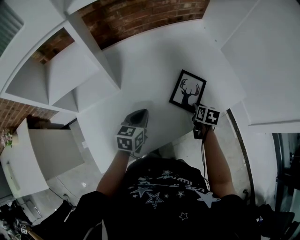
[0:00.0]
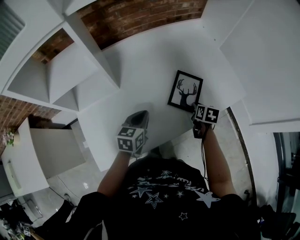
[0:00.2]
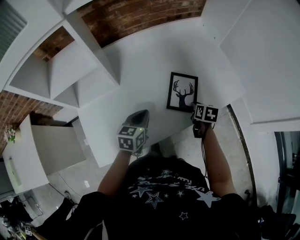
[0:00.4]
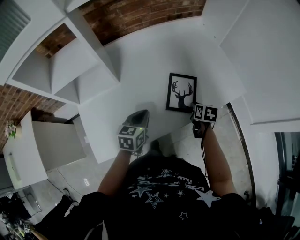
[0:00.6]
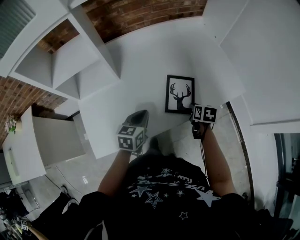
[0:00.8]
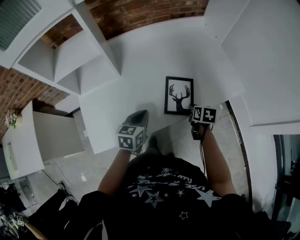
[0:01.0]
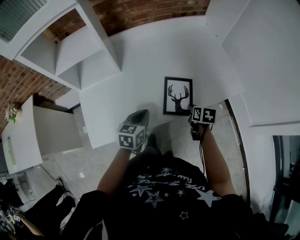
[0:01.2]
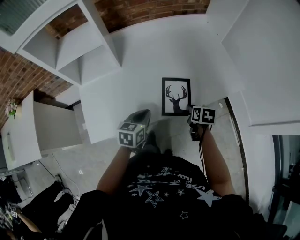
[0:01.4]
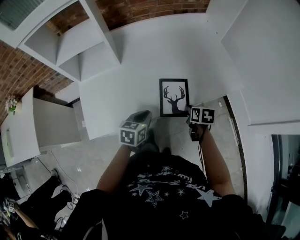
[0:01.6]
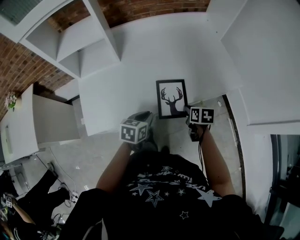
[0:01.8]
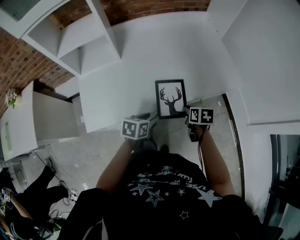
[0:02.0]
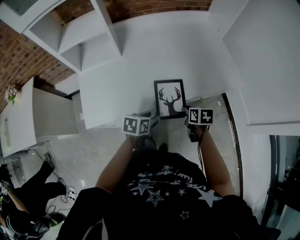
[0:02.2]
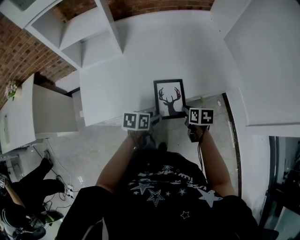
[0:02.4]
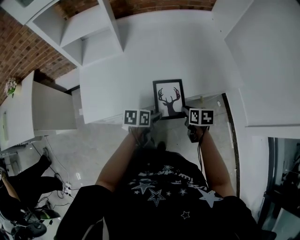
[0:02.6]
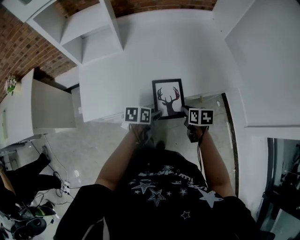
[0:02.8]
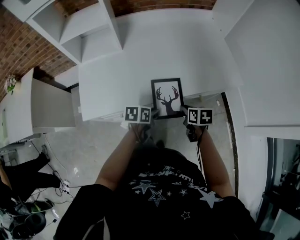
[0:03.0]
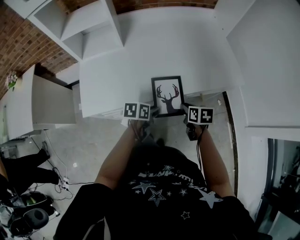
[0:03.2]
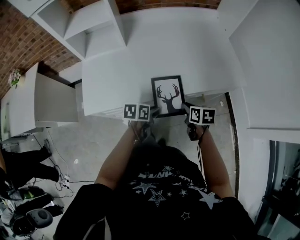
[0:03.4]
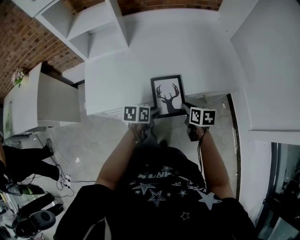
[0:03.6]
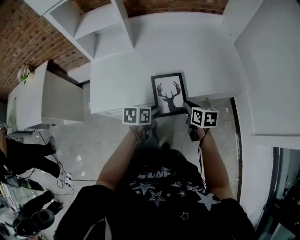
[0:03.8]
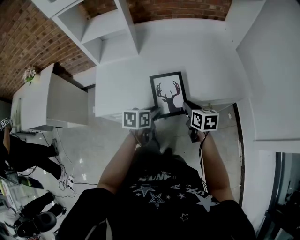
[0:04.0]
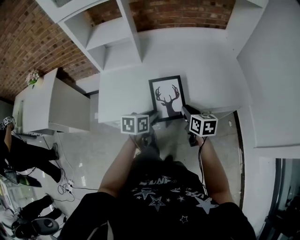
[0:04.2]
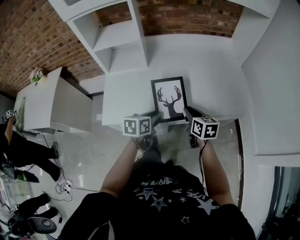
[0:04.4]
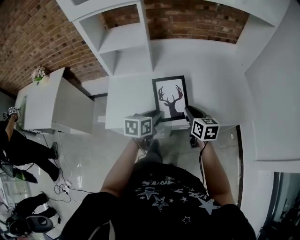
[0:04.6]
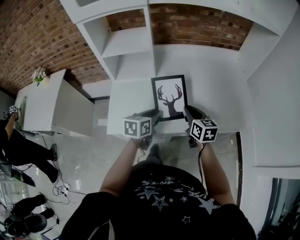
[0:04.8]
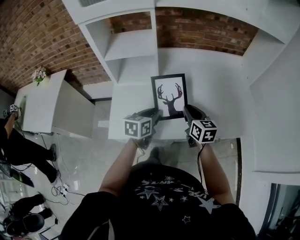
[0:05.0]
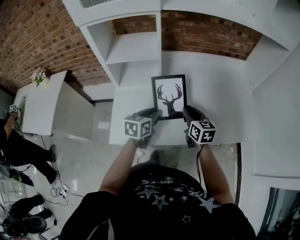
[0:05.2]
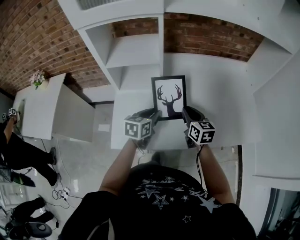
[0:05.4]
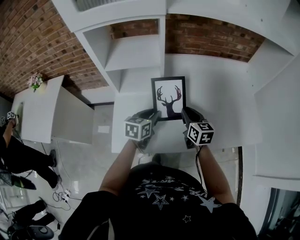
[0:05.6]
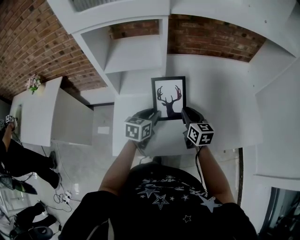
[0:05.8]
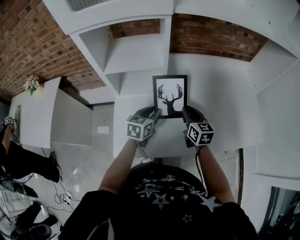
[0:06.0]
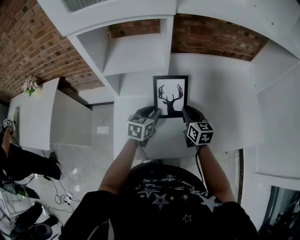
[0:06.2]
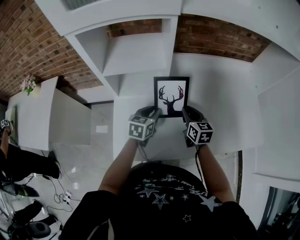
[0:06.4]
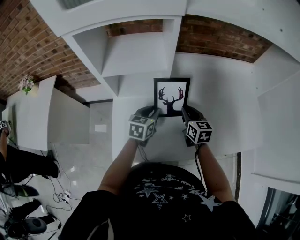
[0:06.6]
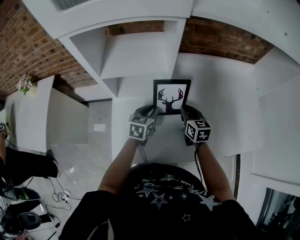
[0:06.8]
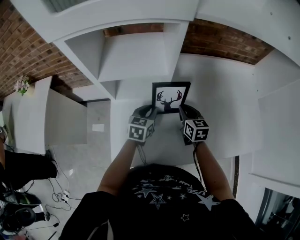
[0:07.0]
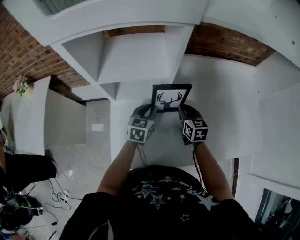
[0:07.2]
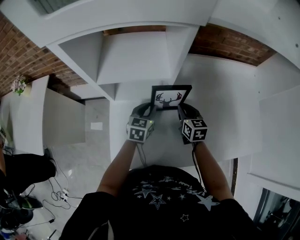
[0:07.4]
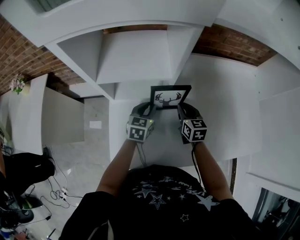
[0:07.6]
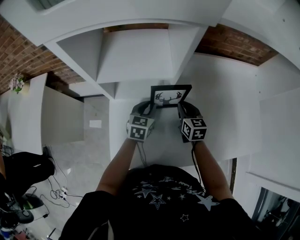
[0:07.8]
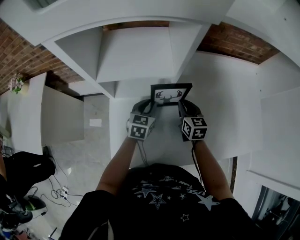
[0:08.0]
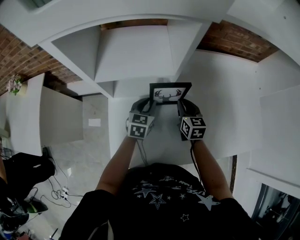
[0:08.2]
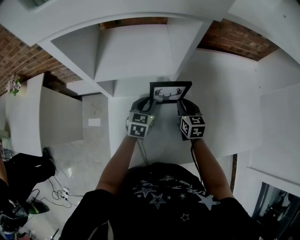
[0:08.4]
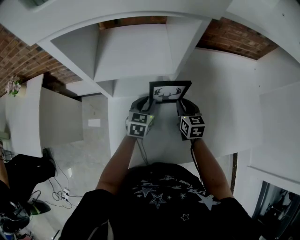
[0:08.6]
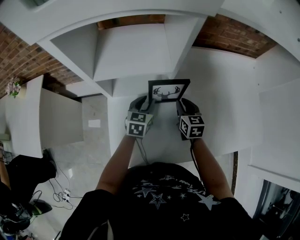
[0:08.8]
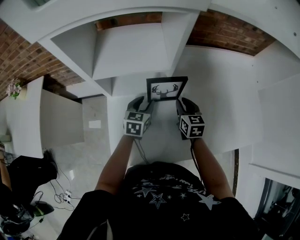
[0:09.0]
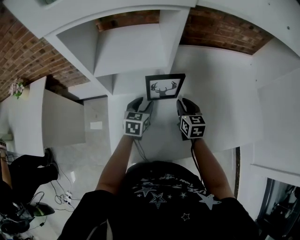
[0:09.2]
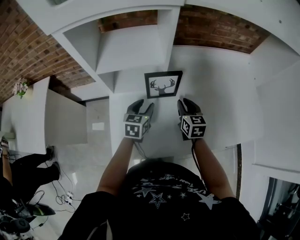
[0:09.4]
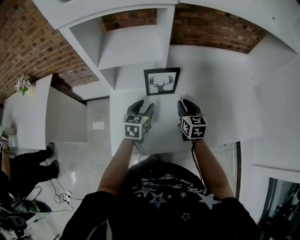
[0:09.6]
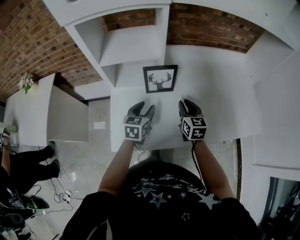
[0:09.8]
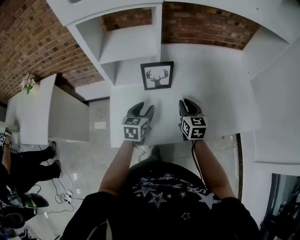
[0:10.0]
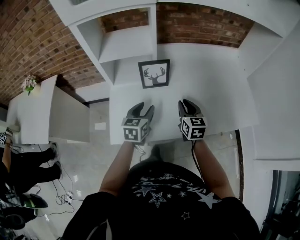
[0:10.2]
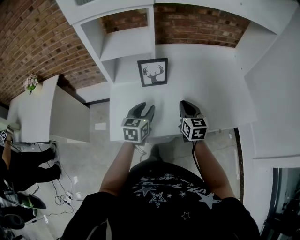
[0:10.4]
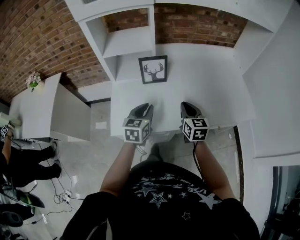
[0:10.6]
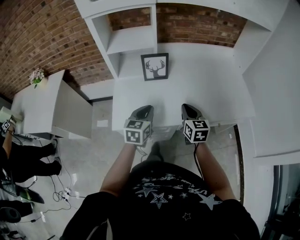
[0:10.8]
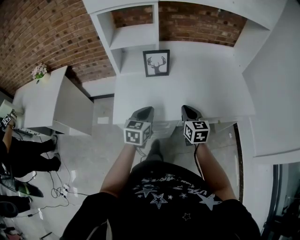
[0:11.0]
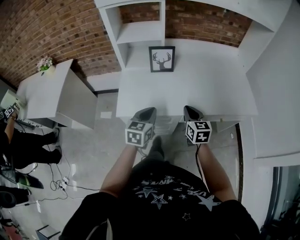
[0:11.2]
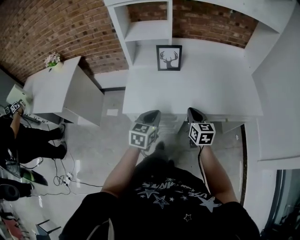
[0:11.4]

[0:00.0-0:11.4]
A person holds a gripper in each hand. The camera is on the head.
0:00.0 to 0:01.4: The left gripper travels backward and to the right by roughly 15 cm. Meanwhile the right gripper travels backward by about 10 cm.
0:01.4 to 0:02.8: The right gripper goes about 5 cm backward. The left gripper travels downward, to the right and backward by roughly 10 cm, changes its angle by some 30 degrees, and opens its fingers.
0:02.8 to 0:04.2: Both grippers travel together upward and to the left, approximately 10 cm. The right gripper rotates roughly 20 degrees.
0:04.2 to 0:05.6: The grippers both shift forward and to the left by roughly 20 cm.
0:05.6 to 0:07.2: Both grippers move forward and downward, roughly 10 cm.
0:07.2 to 0:08.6: The grippers move only a little.
0:08.6 to 0:10.0: The left gripper moves backward and upward, about 15 cm. Meanwhile the right gripper shifts some 15 cm backward, upward and to the right.
0:10.0 to 0:11.4: Both grippers move backward, roughly 20 cm. The left gripper closes up.

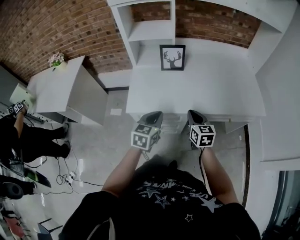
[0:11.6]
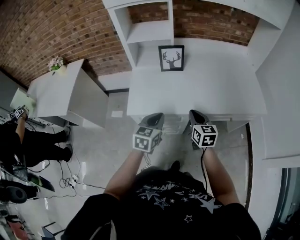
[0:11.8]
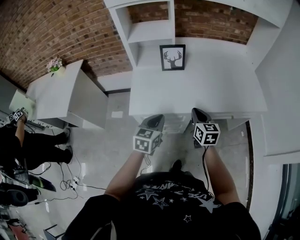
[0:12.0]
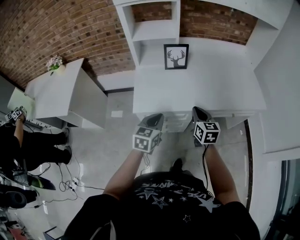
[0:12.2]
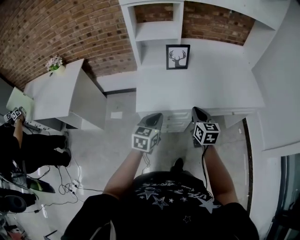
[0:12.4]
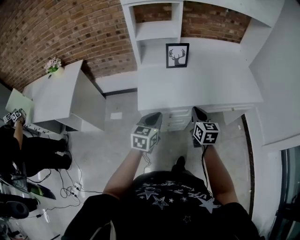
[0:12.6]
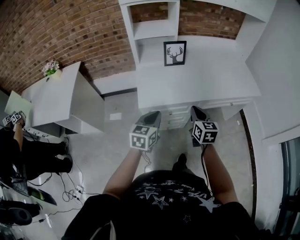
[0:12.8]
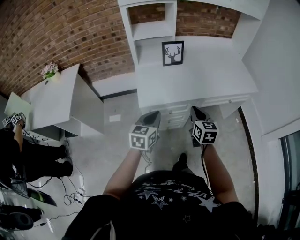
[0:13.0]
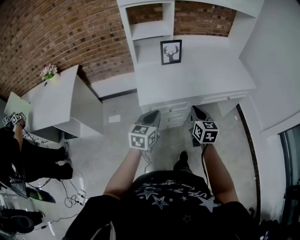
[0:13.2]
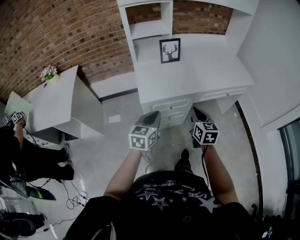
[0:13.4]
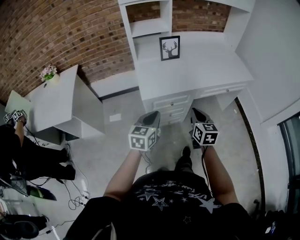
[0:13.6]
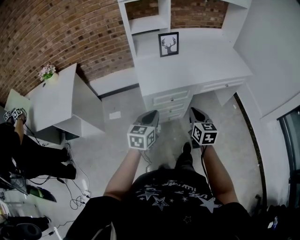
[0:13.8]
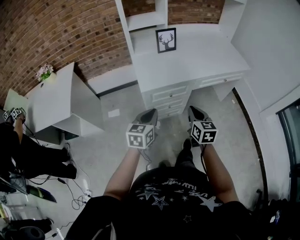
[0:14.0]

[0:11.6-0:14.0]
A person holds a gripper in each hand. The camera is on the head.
0:11.6 to 0:12.8: The right gripper travels backward and to the left by about 10 cm. The left gripper shifts some 10 cm to the left and backward.
0:12.8 to 0:14.0: The two grippers go roughly 15 cm backward.

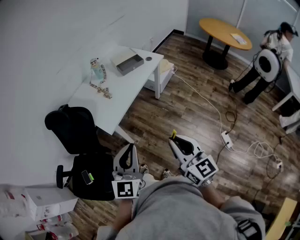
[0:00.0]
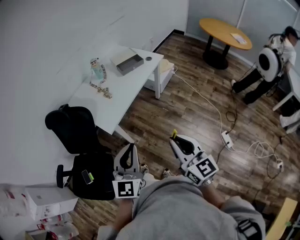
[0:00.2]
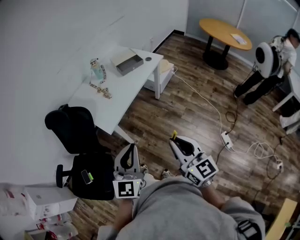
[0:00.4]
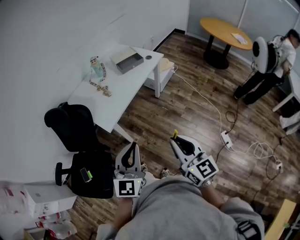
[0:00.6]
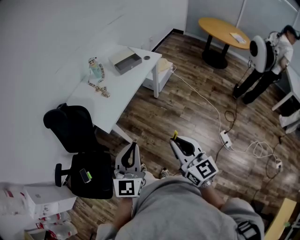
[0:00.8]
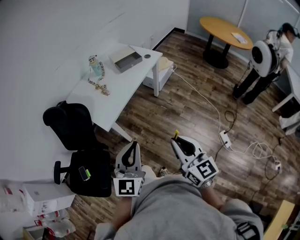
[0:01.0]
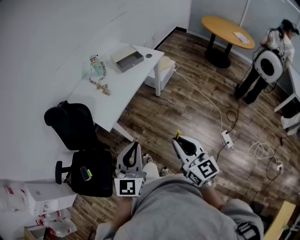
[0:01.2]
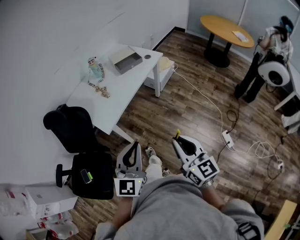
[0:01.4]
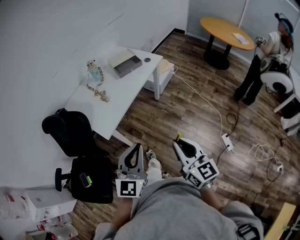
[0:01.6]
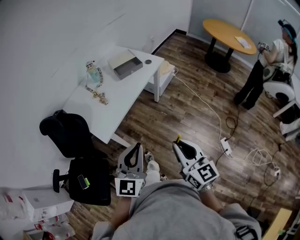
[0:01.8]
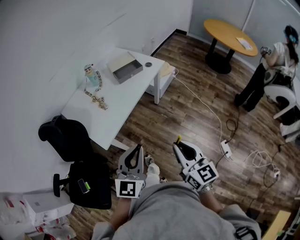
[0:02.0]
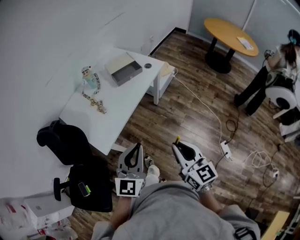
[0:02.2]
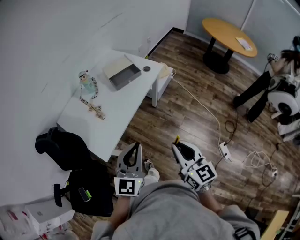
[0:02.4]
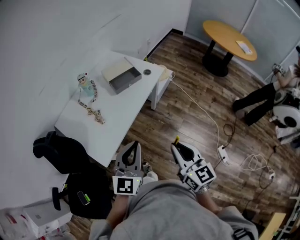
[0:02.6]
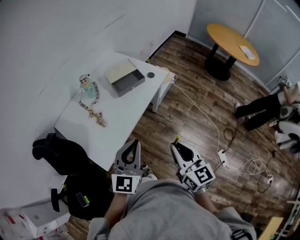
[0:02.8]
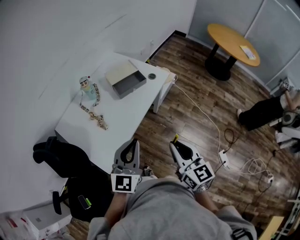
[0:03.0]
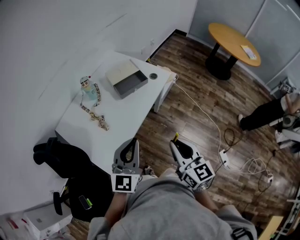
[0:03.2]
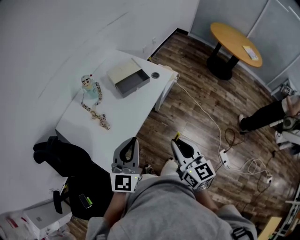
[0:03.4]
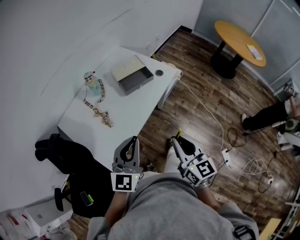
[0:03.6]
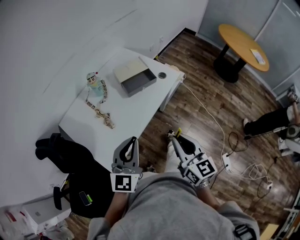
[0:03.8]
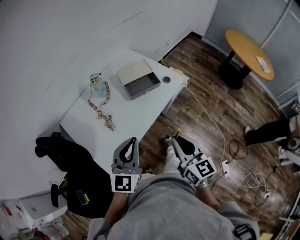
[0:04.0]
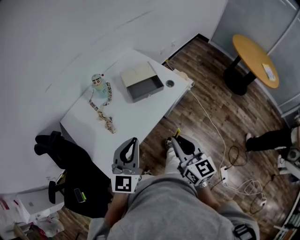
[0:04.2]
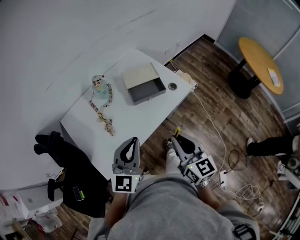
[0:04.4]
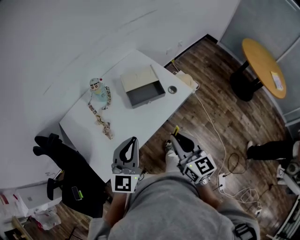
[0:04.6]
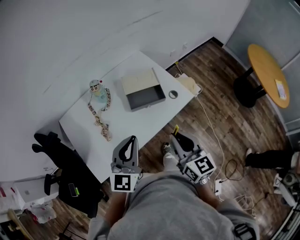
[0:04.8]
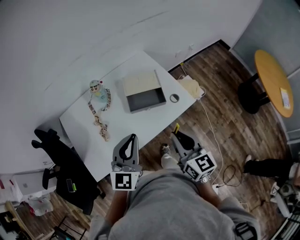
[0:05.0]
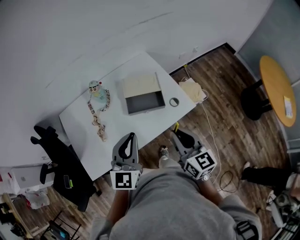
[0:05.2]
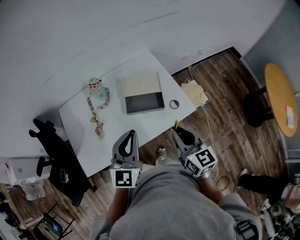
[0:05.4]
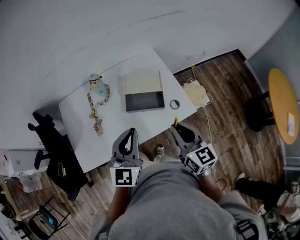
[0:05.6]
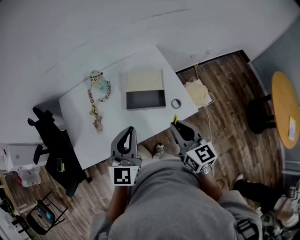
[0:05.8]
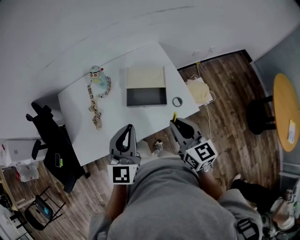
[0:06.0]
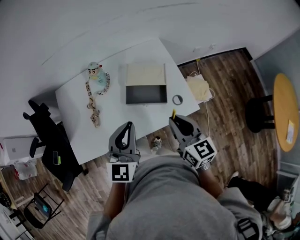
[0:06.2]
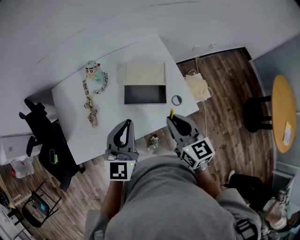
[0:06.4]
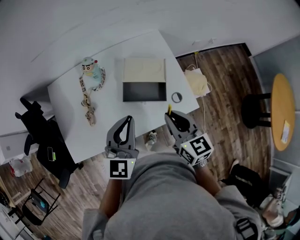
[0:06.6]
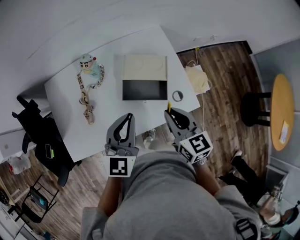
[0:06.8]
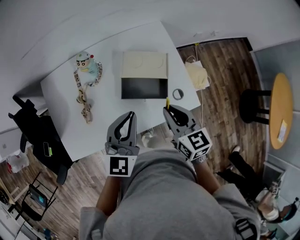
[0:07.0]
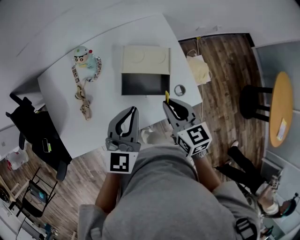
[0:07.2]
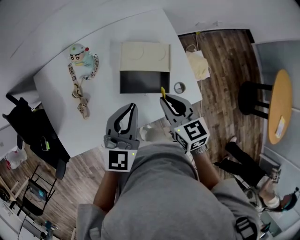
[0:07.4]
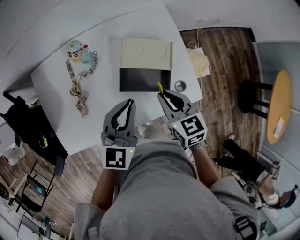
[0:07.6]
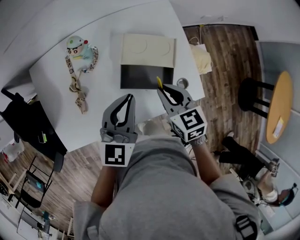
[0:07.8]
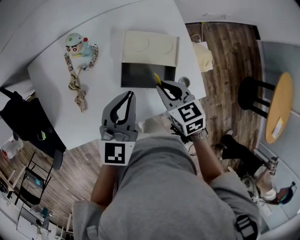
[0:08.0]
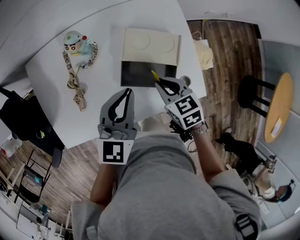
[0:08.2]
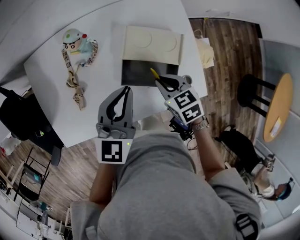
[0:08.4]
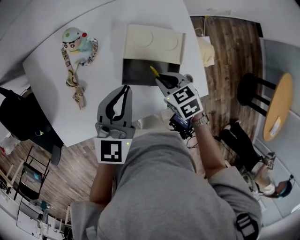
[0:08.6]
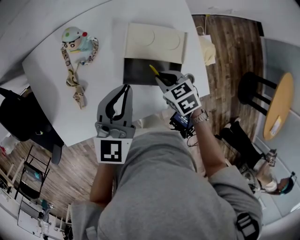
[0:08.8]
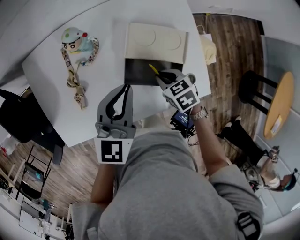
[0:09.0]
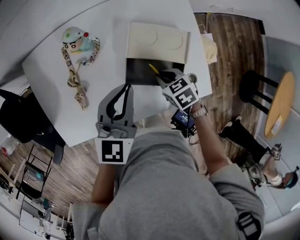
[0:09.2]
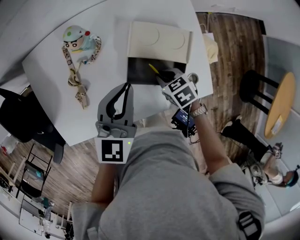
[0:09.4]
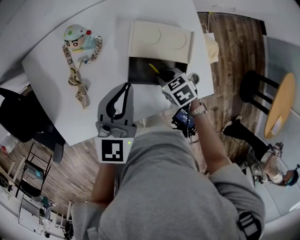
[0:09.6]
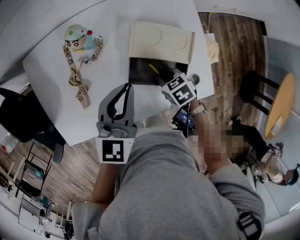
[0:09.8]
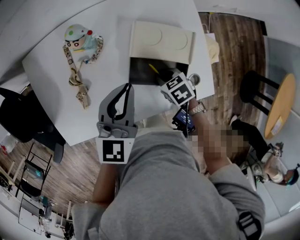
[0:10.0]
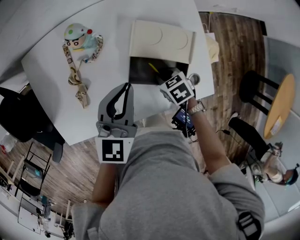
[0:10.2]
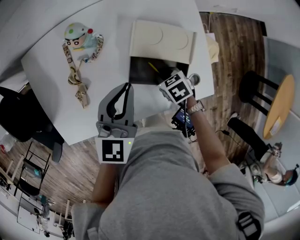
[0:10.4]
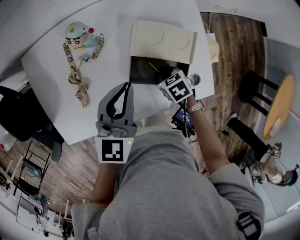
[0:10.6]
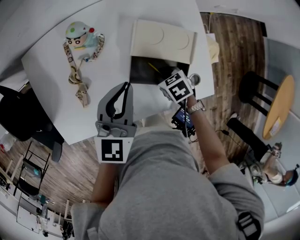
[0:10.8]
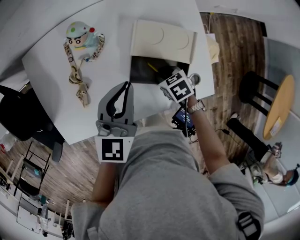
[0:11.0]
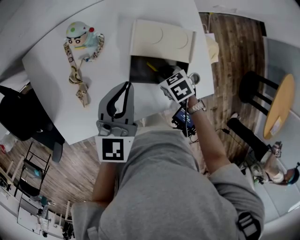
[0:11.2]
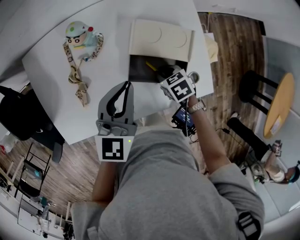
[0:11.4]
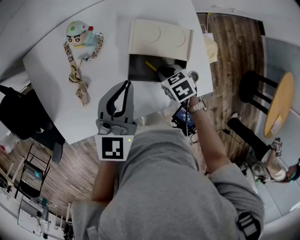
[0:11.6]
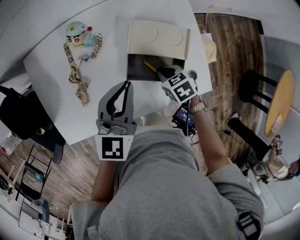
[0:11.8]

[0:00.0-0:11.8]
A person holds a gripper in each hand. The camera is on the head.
0:00.0 to 0:01.4: The grippers make only small movements.
0:01.4 to 0:03.0: The two grippers go some 30 cm forward.
0:03.0 to 0:04.4: Both grippers move forward, about 15 cm.
0:04.4 to 0:06.0: The right gripper shifts by approximately 25 cm, and swivels about 30 degrees, while the left gripper ends up approximately 20 cm from where it was, and changes its angle by roughly 30 degrees.
0:06.0 to 0:07.4: The grippers both shift forward and downward by about 15 cm.
0:07.4 to 0:08.8: The right gripper travels downward by roughly 15 cm, and swivels about 30 degrees; the left gripper moves forward, some 5 cm.
0:08.8 to 0:10.4: The right gripper travels downward by about 5 cm.
0:10.4 to 0:11.8: The grippers move only a little.
